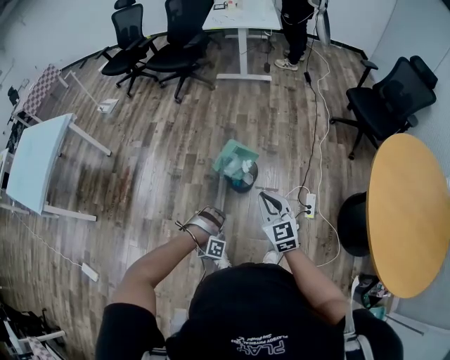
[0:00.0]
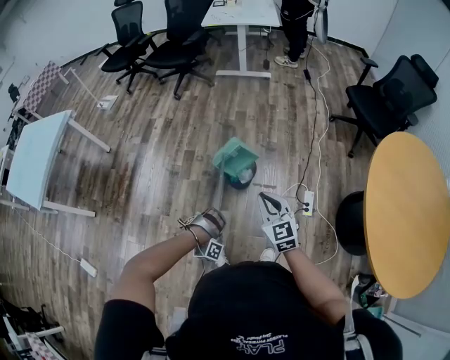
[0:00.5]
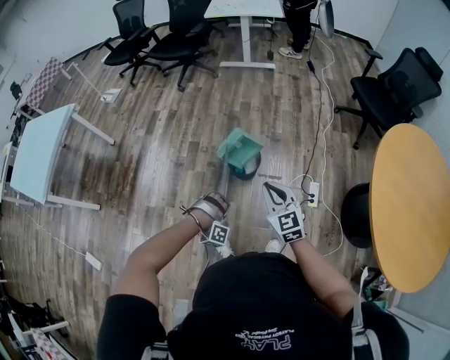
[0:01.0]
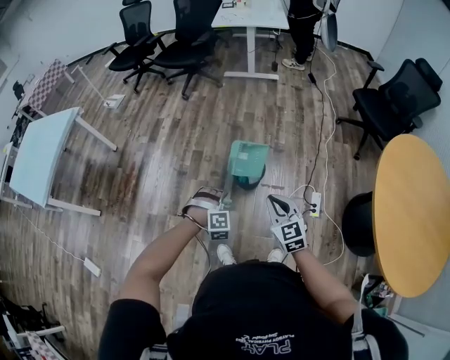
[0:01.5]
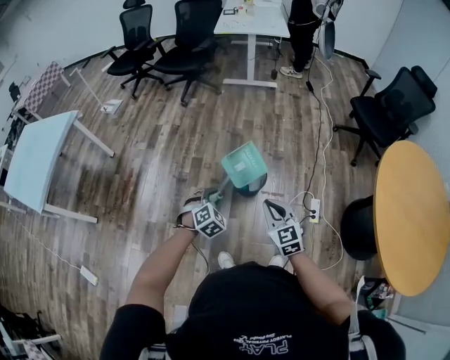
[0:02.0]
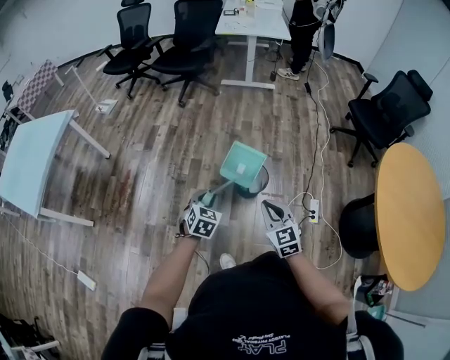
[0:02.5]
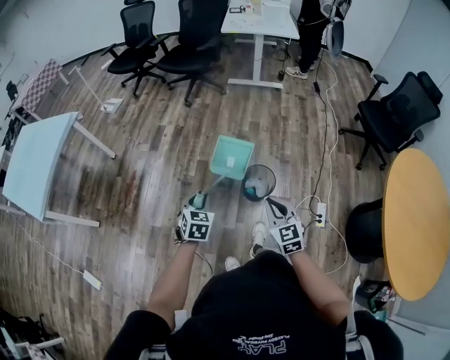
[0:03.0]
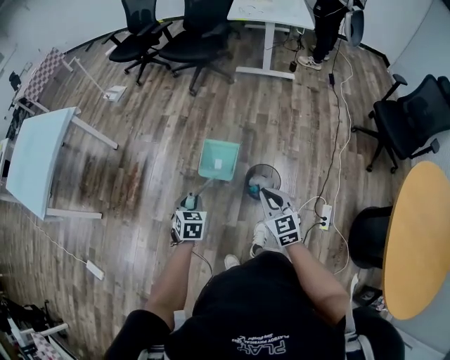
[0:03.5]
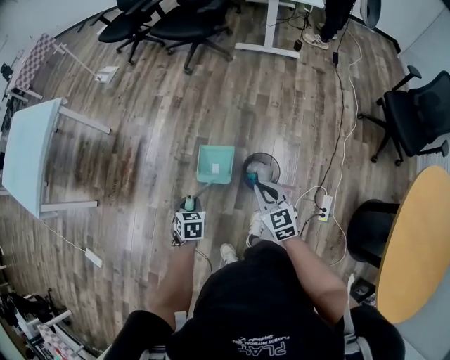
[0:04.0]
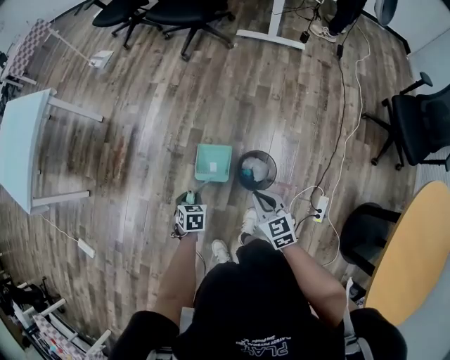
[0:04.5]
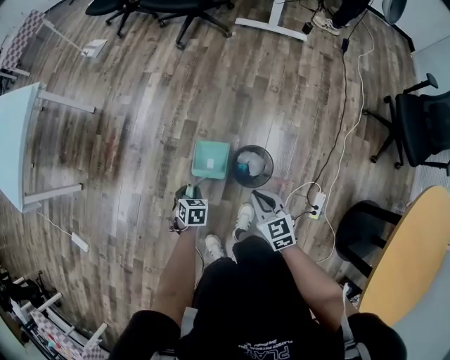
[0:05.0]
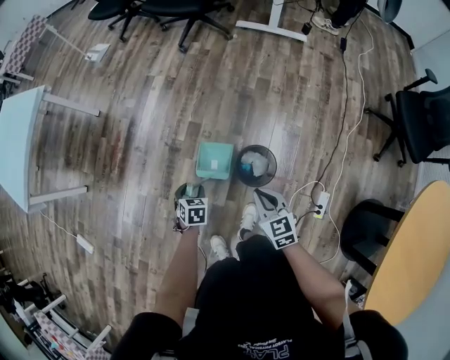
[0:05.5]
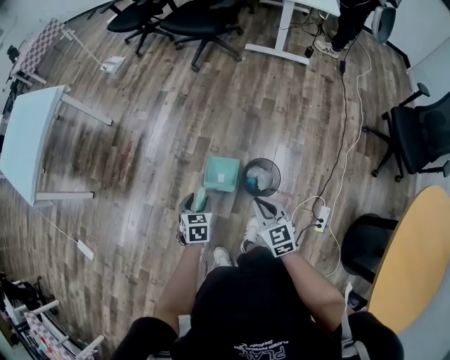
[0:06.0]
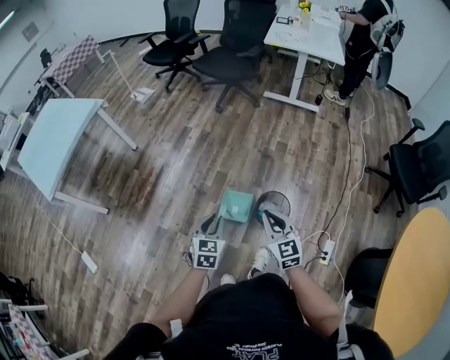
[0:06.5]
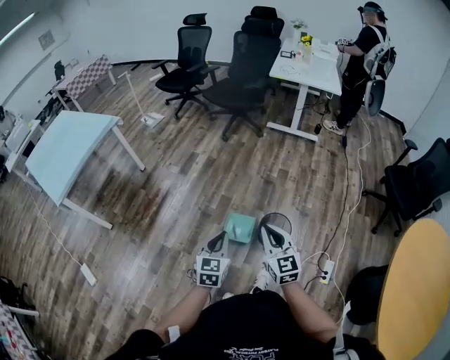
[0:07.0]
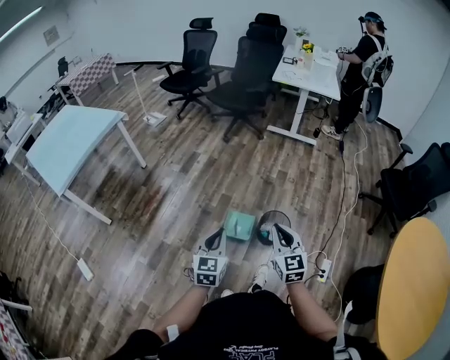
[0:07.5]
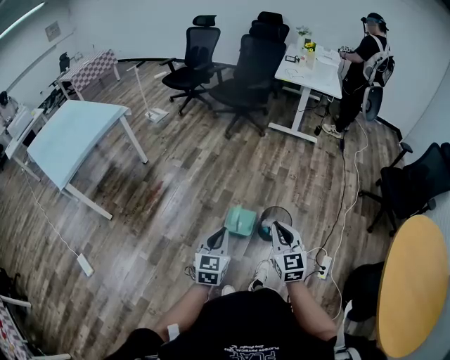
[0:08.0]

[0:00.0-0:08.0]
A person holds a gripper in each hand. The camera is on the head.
0:00.0 to 0:02.0: The right gripper is displaced to the left by some 5 cm; the left gripper heads forward and upward, covering roughly 10 cm, and rolls counterclockwise, seen from behind, by some 70 degrees.
0:02.0 to 0:04.0: The right gripper goes some 25 cm forward, while the left gripper goes approximately 20 cm forward, downward and to the left, and twists about 50 degrees counterclockwise, seen from behind.
0:04.0 to 0:06.0: The right gripper travels downward and back again, about 10 cm each way. The left gripper goes downward and returns, approximately 10 cm each way, and opens up.
0:06.0 to 0:08.0: The left gripper shifts roughly 30 cm upward and backward, angles its fingers upward, by about 30 degrees, and closes its fingers; the right gripper moves upward, backward and to the left, about 25 cm, and turns by about 20 degrees.

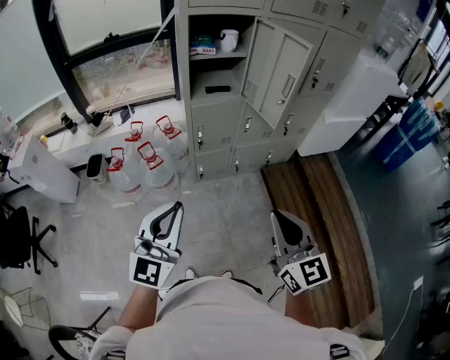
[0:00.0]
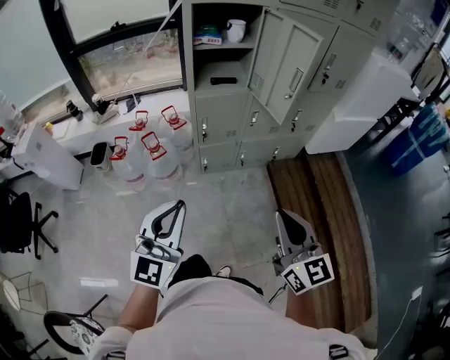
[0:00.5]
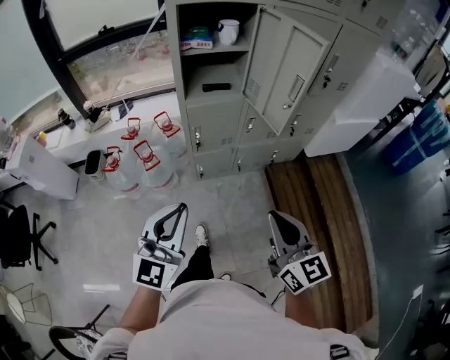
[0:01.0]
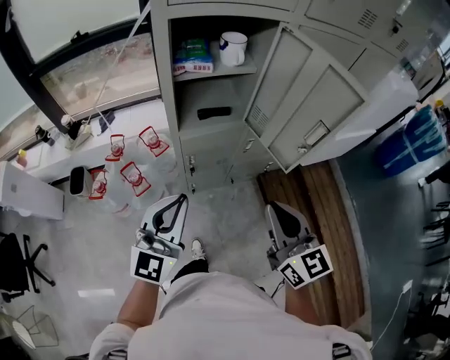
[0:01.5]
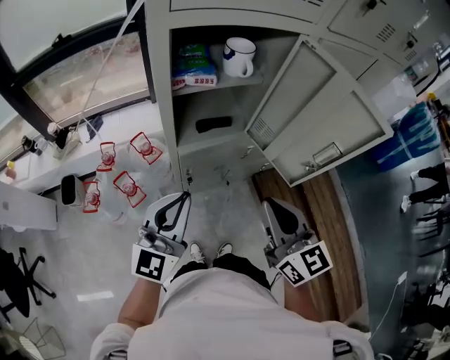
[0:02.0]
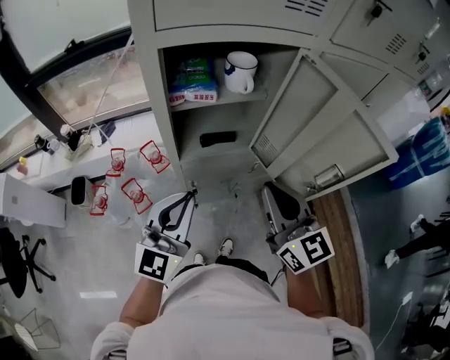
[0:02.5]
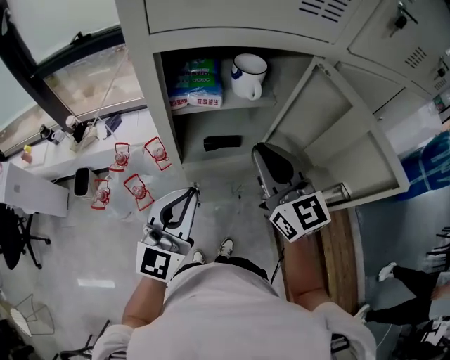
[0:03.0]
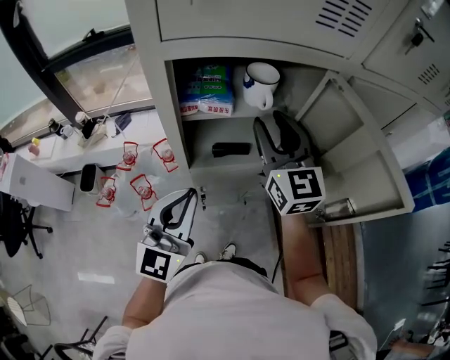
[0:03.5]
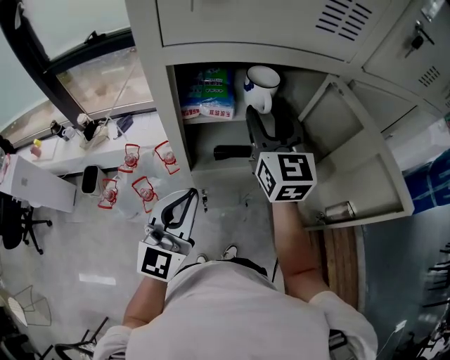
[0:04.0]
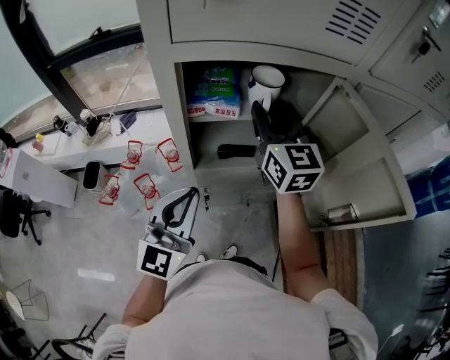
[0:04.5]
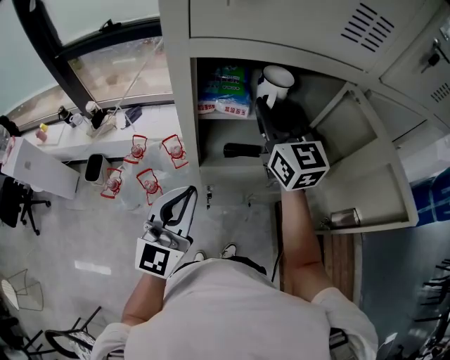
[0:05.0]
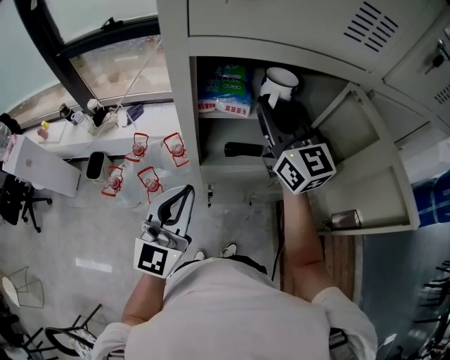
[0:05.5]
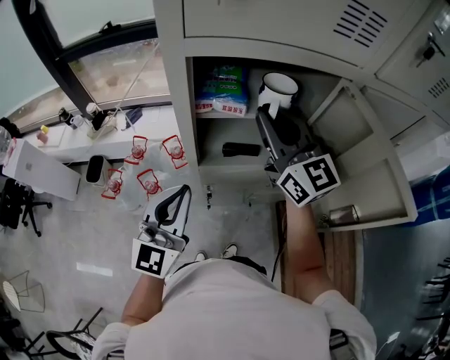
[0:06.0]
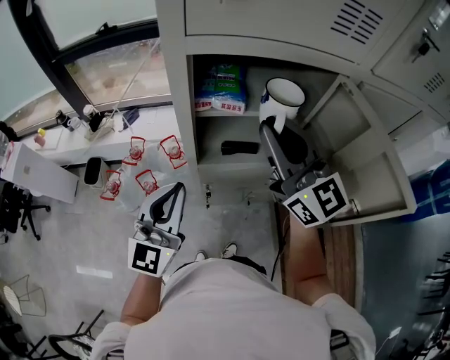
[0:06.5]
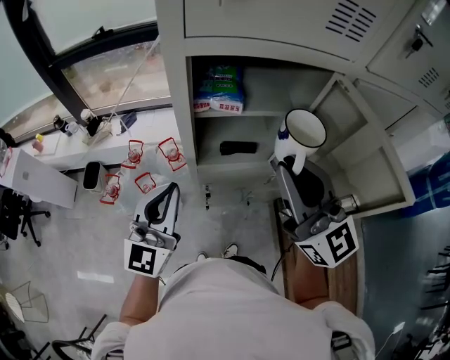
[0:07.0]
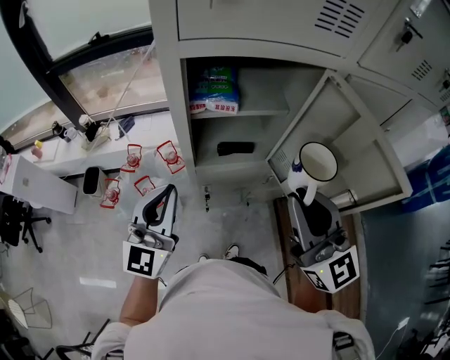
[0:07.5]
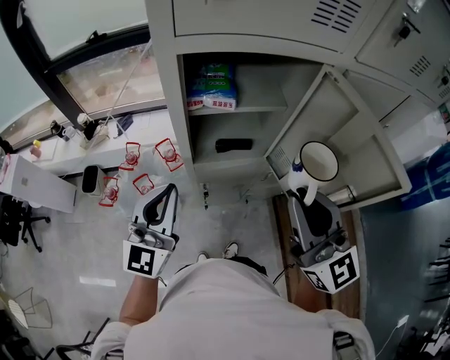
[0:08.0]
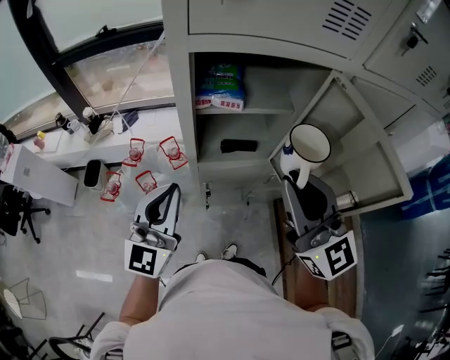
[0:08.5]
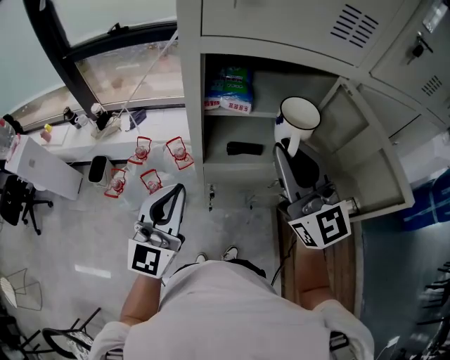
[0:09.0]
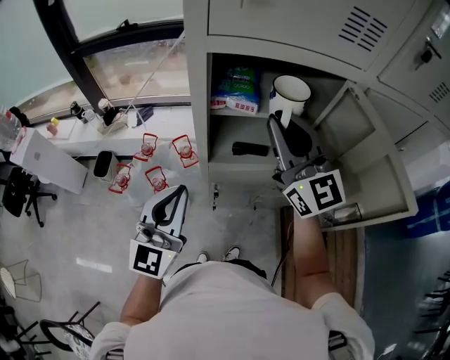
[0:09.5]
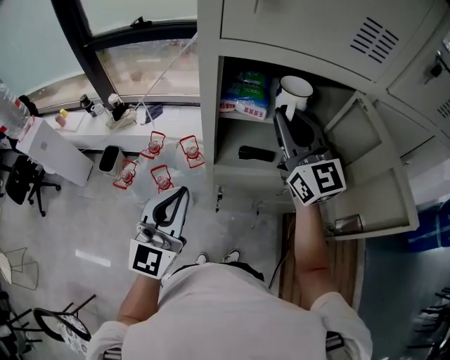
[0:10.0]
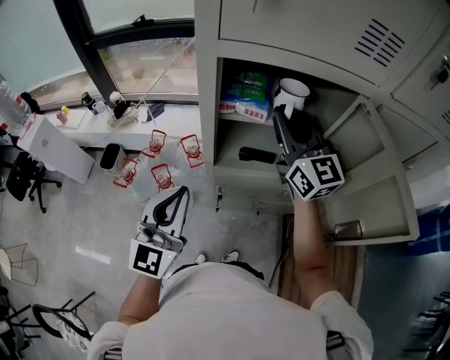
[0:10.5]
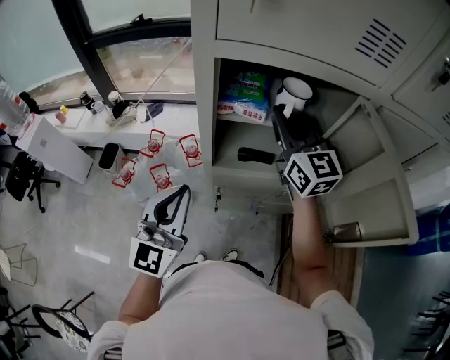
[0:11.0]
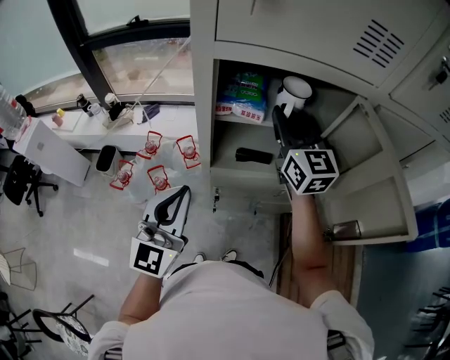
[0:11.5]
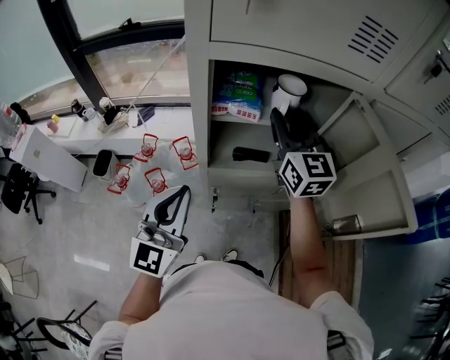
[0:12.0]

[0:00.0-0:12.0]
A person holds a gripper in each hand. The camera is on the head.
0:00.0 to 0:02.0: Both grippers travel together forward, about 35 cm.
0:02.0 to 0:04.0: The right gripper heads forward, covering roughly 30 cm, and opens its fingers. The left gripper heads forward, covering roughly 10 cm.
0:04.0 to 0:06.0: The right gripper rotates about 20 degrees, and closes its fingers.
0:06.0 to 0:08.0: The right gripper heads backward, covering approximately 20 cm.
0:08.0 to 0:10.0: The right gripper heads forward, covering some 20 cm.
0:10.0 to 0:12.0: The right gripper ends up about 5 cm from where it was.

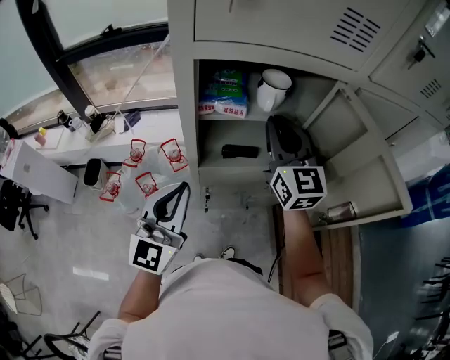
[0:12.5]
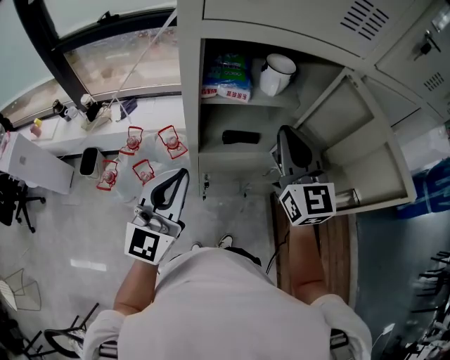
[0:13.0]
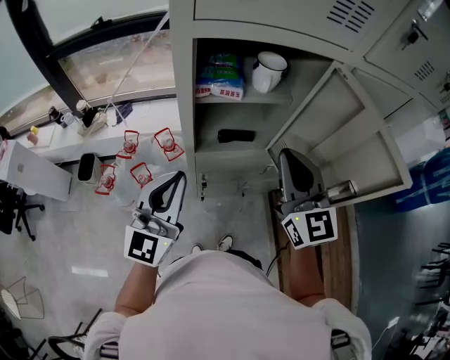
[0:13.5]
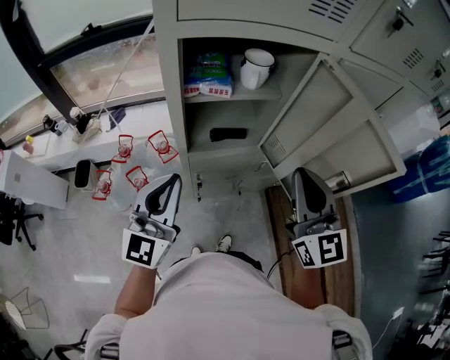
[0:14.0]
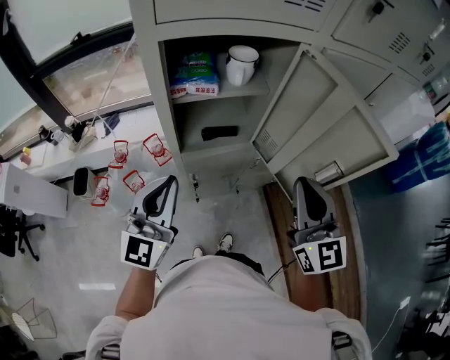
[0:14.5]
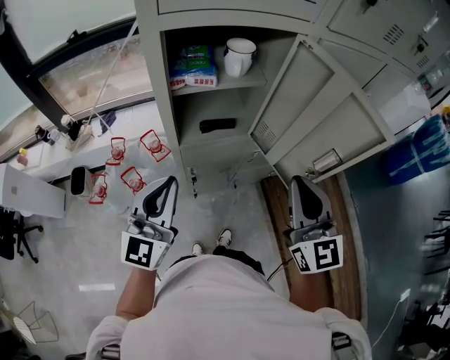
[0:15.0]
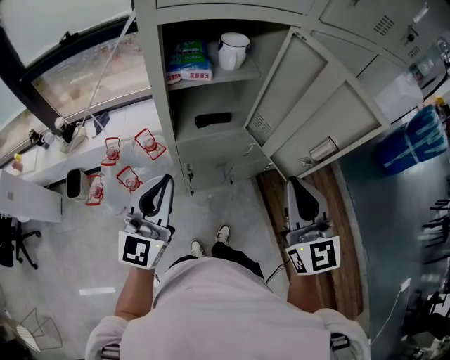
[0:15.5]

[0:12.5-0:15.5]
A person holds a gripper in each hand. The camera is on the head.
0:12.5 to 0:14.0: The right gripper moves backward and to the right, roughly 20 cm.
0:14.0 to 0:15.5: The right gripper travels backward by roughly 10 cm.

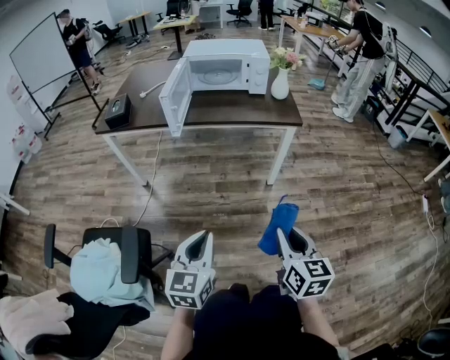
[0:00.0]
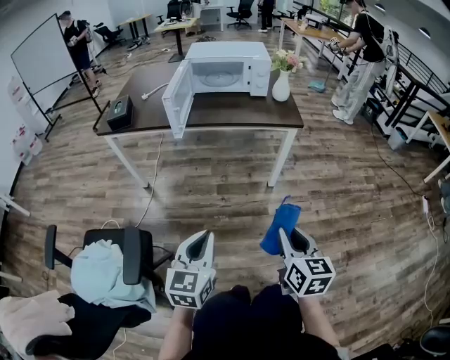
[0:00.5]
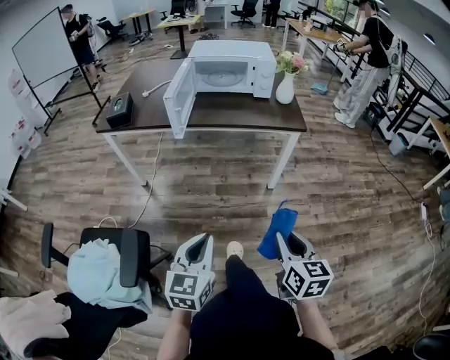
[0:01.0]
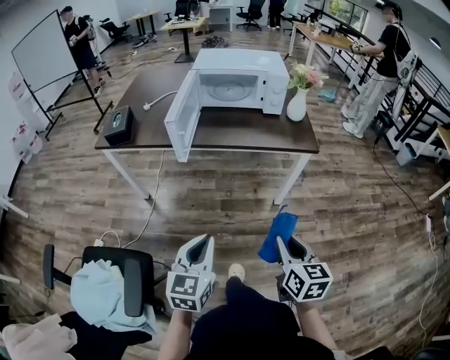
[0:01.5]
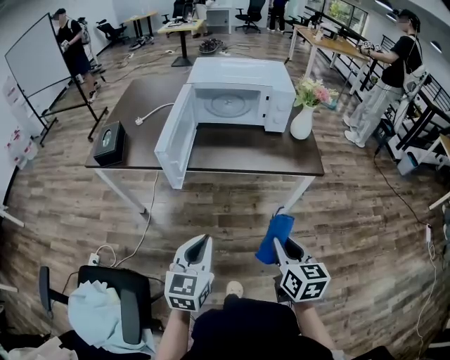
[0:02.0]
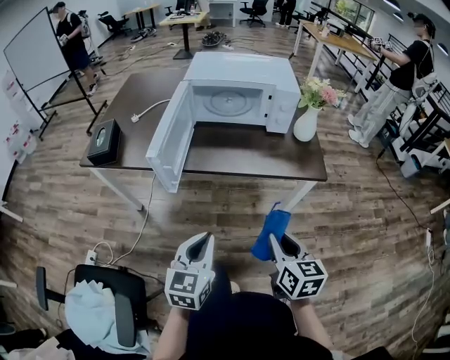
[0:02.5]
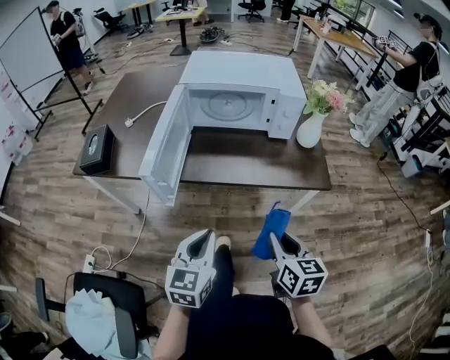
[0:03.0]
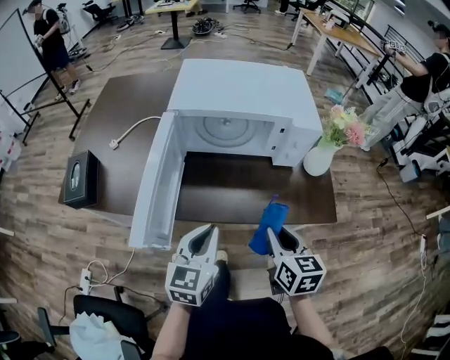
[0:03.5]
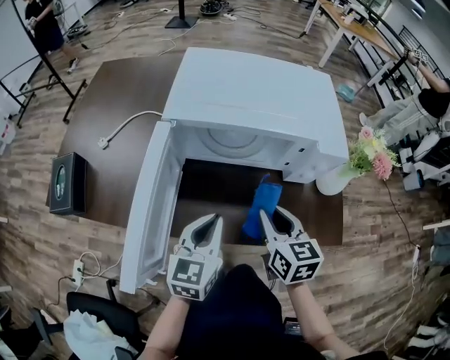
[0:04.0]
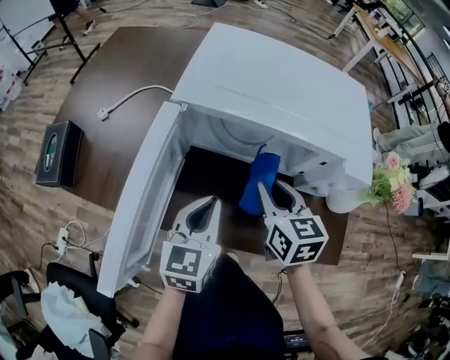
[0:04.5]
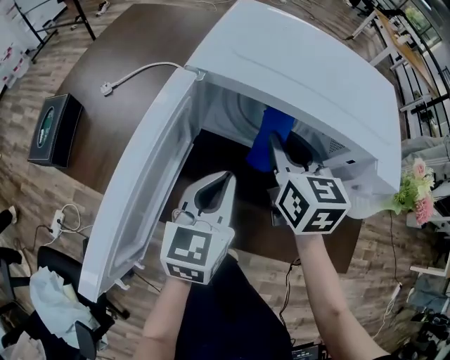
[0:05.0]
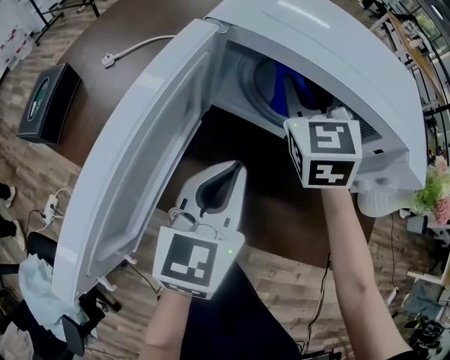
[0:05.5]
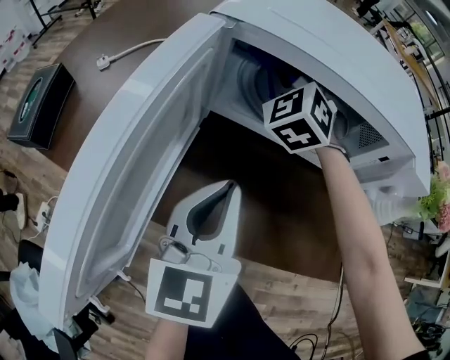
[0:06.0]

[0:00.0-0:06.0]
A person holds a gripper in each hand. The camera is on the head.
0:00.0 to 0:02.0: Both grippers travel together forward, some 25 cm.
0:02.0 to 0:04.0: The pair of grippers is taken forward, roughly 40 cm.
0:04.0 to 0:06.0: The left gripper moves some 5 cm; the right gripper travels forward and to the left by roughly 30 cm, and rotates around the line of its fingers by some 70 degrees, counterclockwise from behind.
